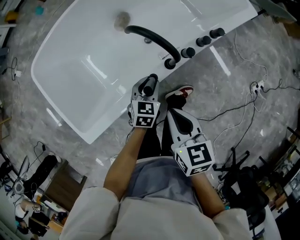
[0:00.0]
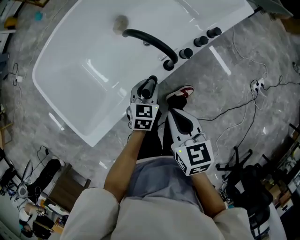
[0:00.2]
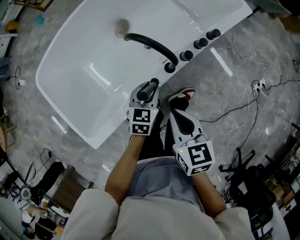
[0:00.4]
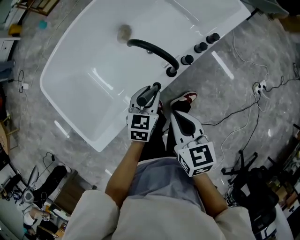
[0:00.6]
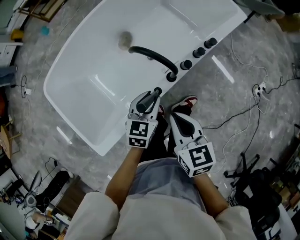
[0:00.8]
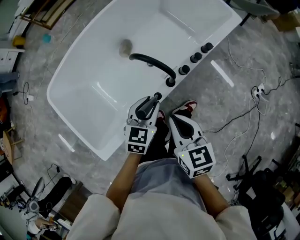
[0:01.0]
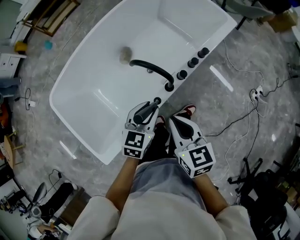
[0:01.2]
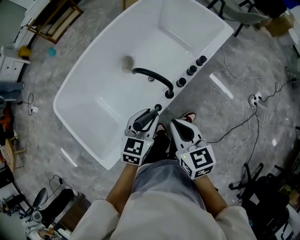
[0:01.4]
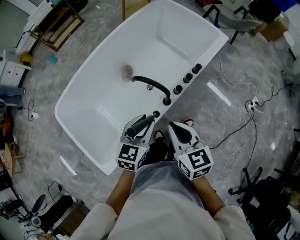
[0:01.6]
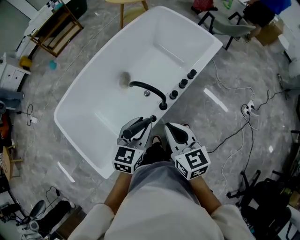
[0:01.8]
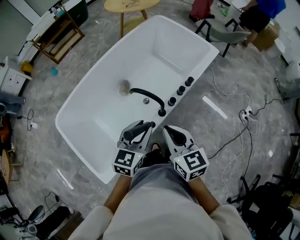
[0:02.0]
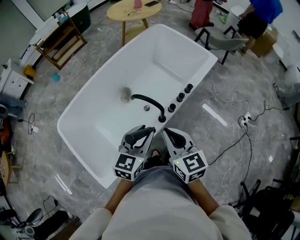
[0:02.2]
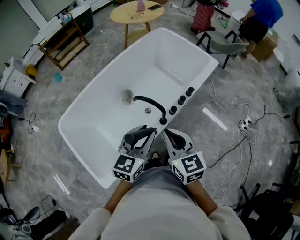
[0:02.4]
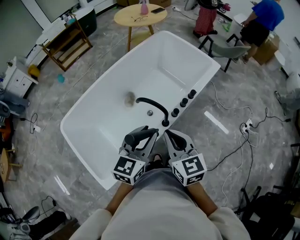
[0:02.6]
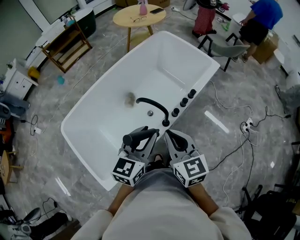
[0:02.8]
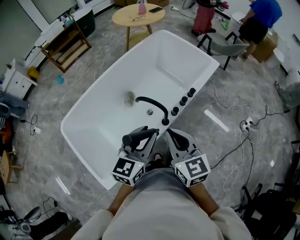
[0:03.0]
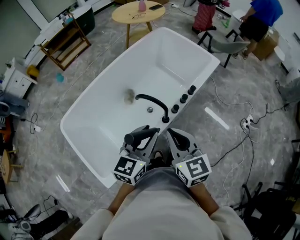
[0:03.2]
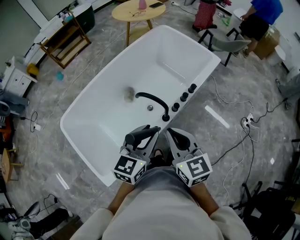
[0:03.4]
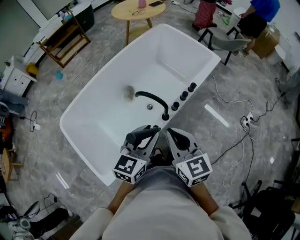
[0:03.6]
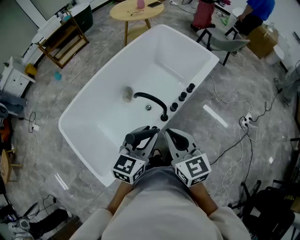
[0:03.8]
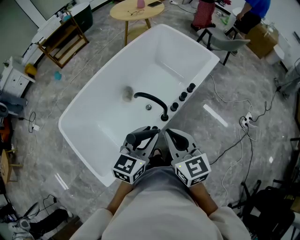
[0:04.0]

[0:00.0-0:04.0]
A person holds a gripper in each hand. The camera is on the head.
0:00.0 to 0:01.4: The right gripper goes approximately 10 cm upward, while the left gripper moves upward, roughly 20 cm.
0:01.4 to 0:02.6: The two grippers go approximately 15 cm upward.
0:02.6 to 0:04.0: The grippers make only small movements.

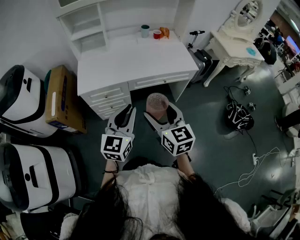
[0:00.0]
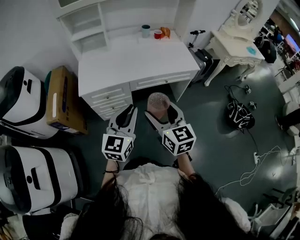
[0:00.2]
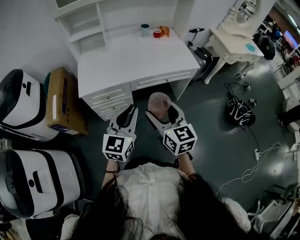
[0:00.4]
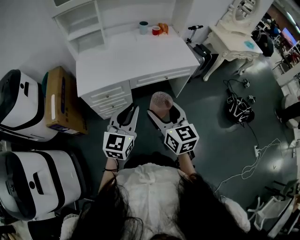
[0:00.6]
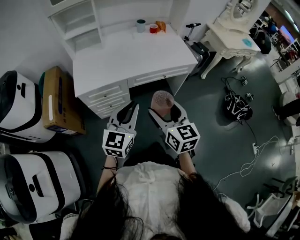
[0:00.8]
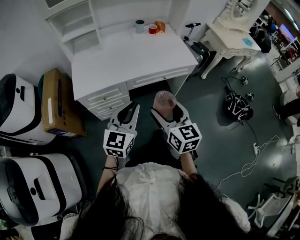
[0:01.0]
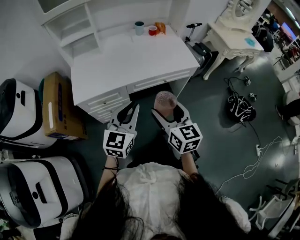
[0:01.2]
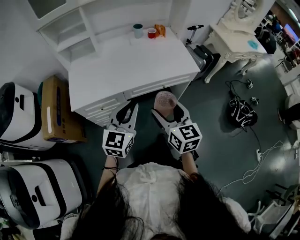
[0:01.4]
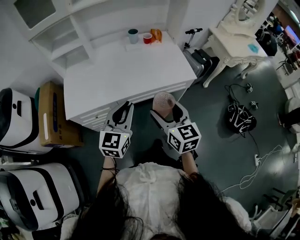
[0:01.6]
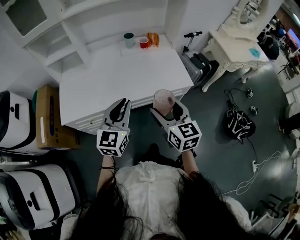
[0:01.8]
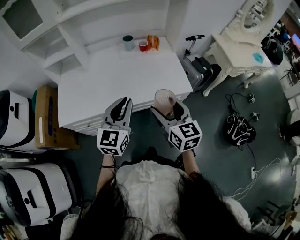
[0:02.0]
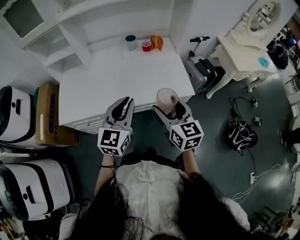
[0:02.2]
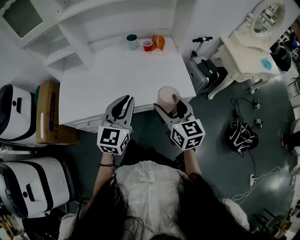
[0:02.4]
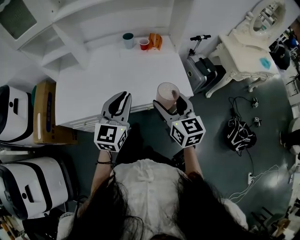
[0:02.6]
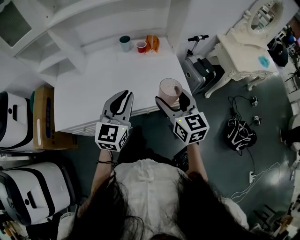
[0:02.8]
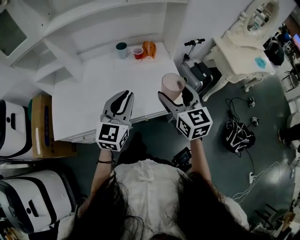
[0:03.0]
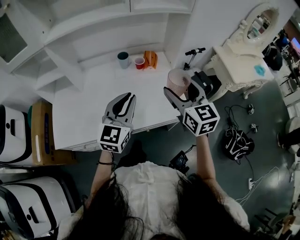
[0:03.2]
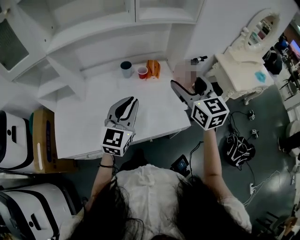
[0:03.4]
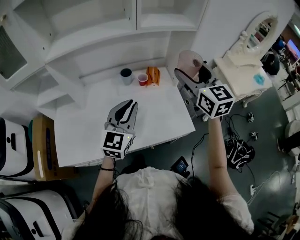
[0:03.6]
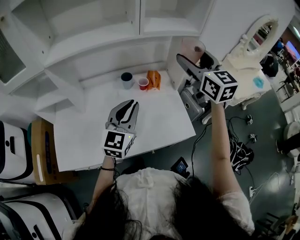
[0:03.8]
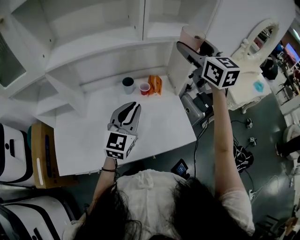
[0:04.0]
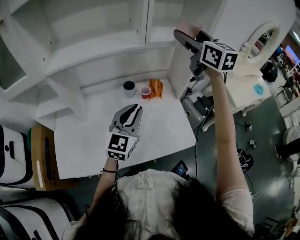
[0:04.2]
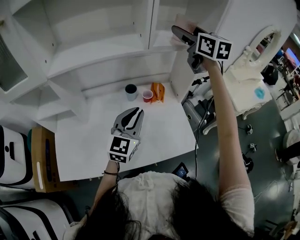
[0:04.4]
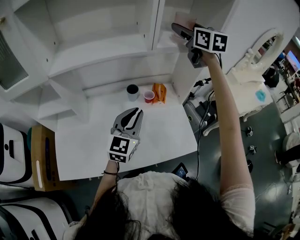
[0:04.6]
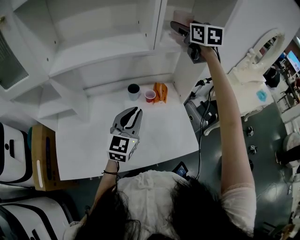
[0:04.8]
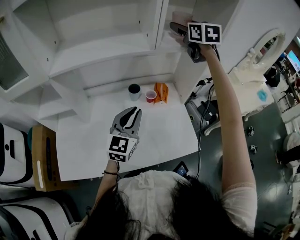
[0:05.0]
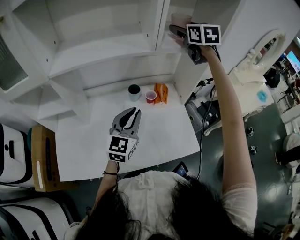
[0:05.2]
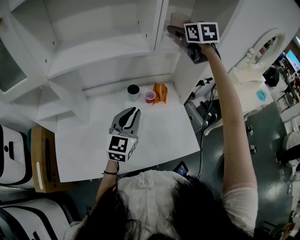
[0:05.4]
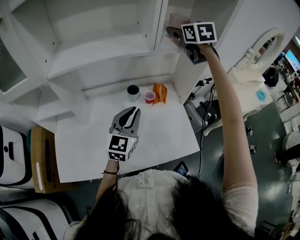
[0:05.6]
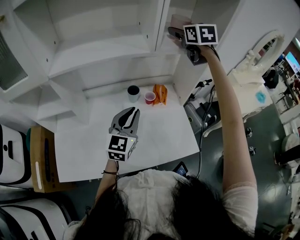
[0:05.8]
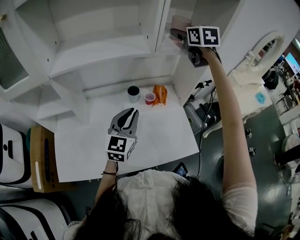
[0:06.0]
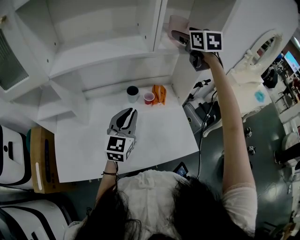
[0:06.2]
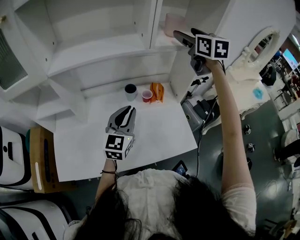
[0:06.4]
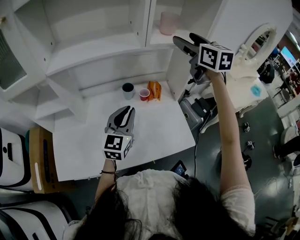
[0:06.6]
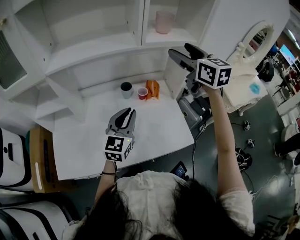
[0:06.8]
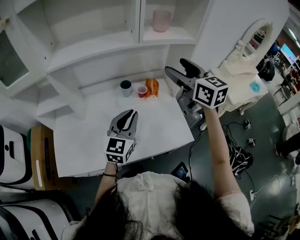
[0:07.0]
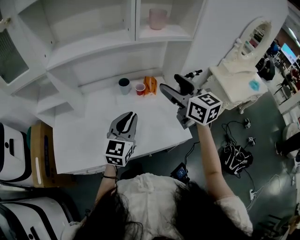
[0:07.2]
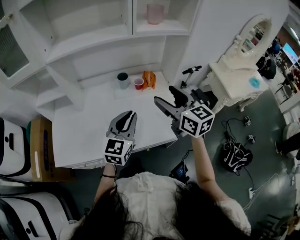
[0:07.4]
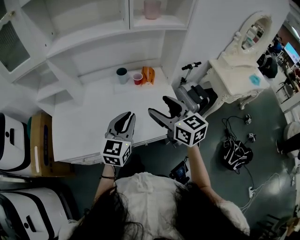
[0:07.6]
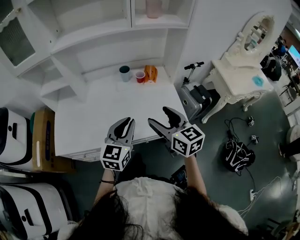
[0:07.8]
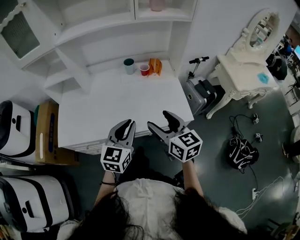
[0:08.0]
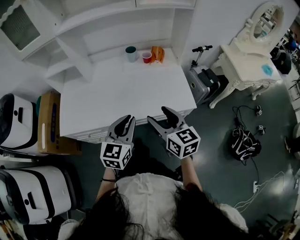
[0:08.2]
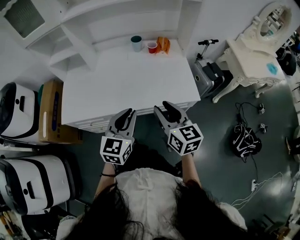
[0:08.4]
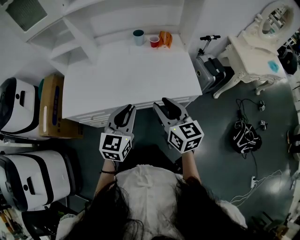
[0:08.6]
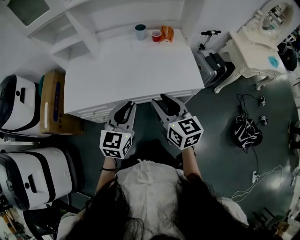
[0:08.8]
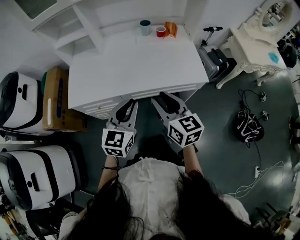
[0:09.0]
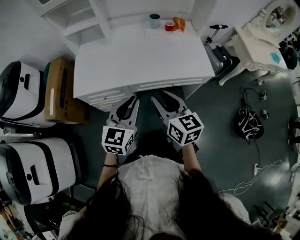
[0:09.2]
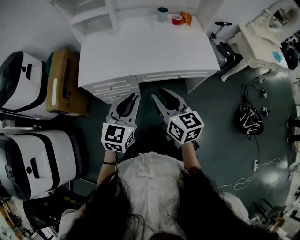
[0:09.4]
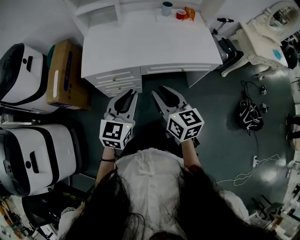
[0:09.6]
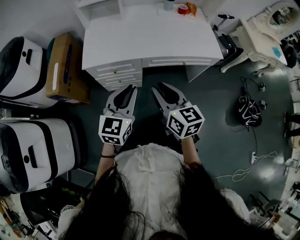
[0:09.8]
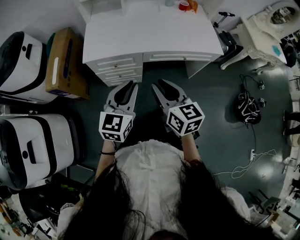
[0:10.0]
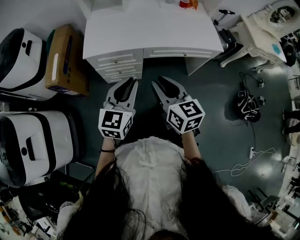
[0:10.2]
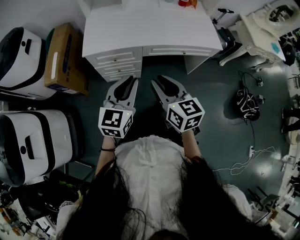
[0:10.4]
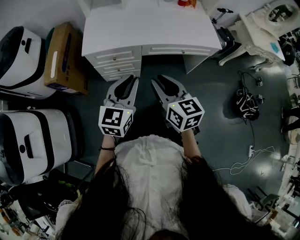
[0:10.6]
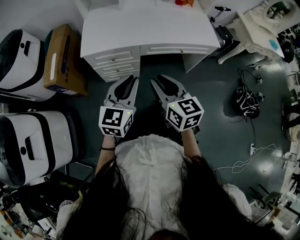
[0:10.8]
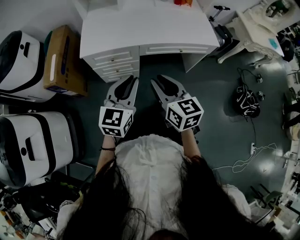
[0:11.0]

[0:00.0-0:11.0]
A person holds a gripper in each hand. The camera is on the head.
0:00.0 to 0:01.6: The left gripper moves forward, roughly 20 cm. The right gripper is displaced forward and to the right by approximately 20 cm.
0:01.6 to 0:03.2: The two grippers go about 30 cm forward and to the right.
0:03.2 to 0:04.8: The left gripper is displaced forward by about 15 cm. The right gripper moves forward and upward, roughly 40 cm.
0:04.8 to 0:06.2: The grippers stay close to where they were, moving slightly.
0:06.2 to 0:07.8: The left gripper moves backward, roughly 20 cm, while the right gripper goes about 50 cm backward and downward, and rotates approximately 30 degrees.
0:07.8 to 0:09.4: The left gripper moves backward and to the left, some 30 cm, while the right gripper is displaced to the left and backward by roughly 30 cm, and closes up.
0:09.4 to 0:11.0: Both grippers move backward and to the left, about 10 cm.

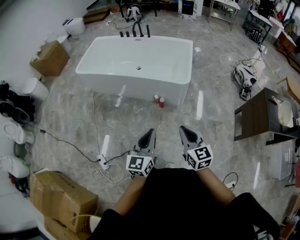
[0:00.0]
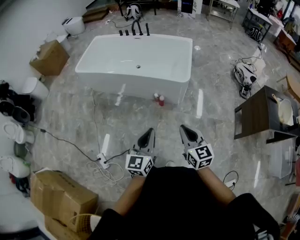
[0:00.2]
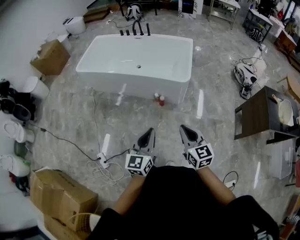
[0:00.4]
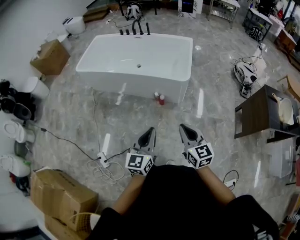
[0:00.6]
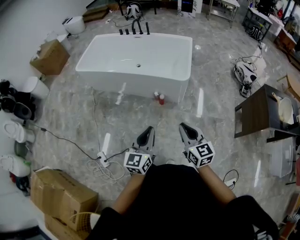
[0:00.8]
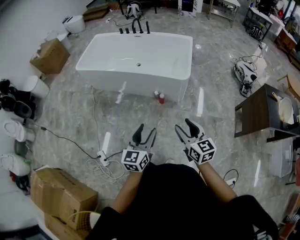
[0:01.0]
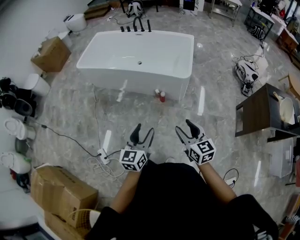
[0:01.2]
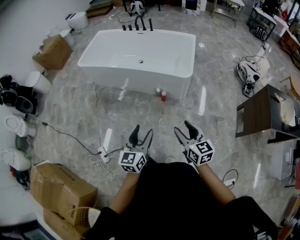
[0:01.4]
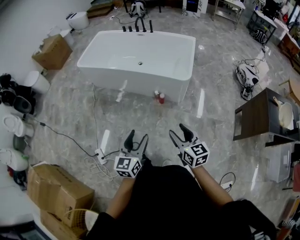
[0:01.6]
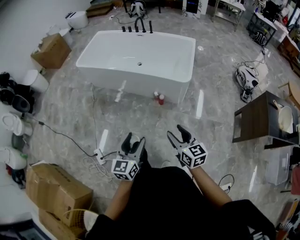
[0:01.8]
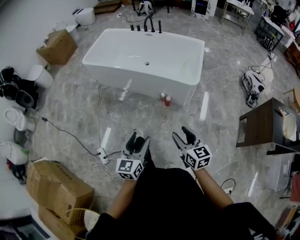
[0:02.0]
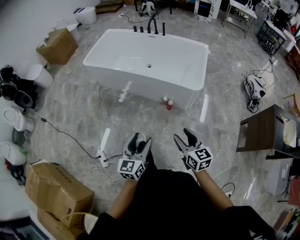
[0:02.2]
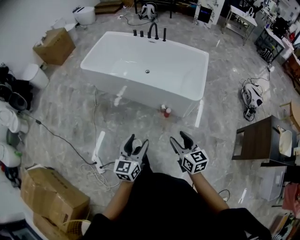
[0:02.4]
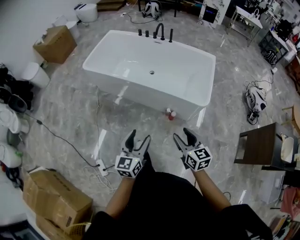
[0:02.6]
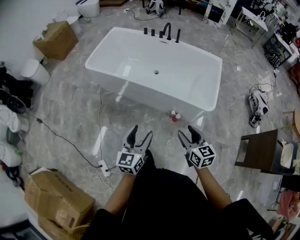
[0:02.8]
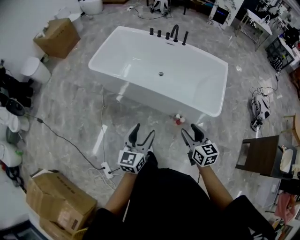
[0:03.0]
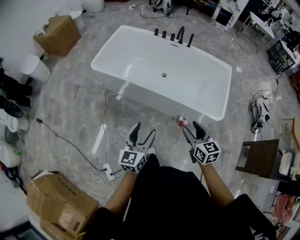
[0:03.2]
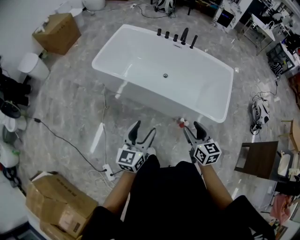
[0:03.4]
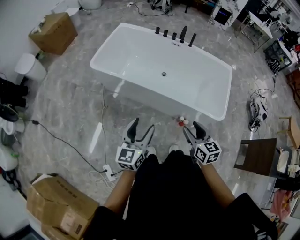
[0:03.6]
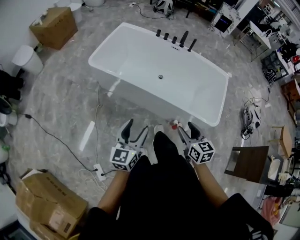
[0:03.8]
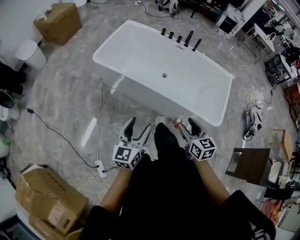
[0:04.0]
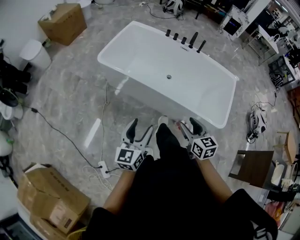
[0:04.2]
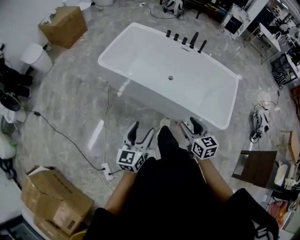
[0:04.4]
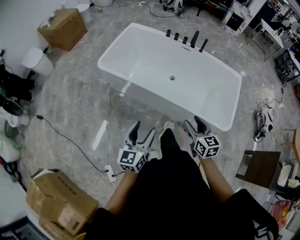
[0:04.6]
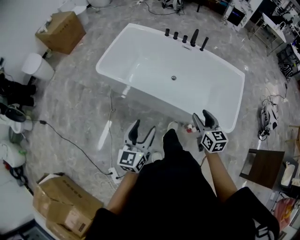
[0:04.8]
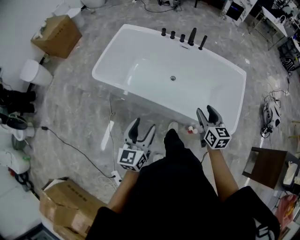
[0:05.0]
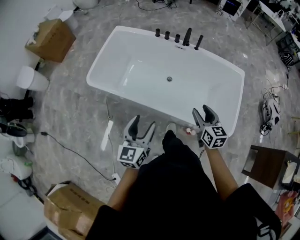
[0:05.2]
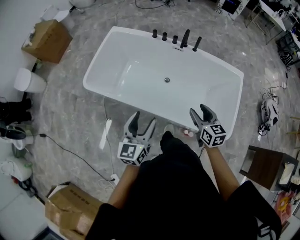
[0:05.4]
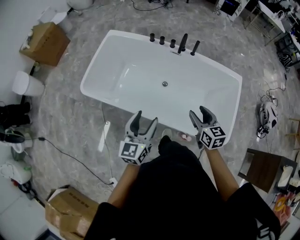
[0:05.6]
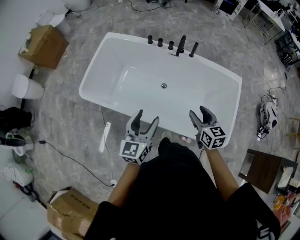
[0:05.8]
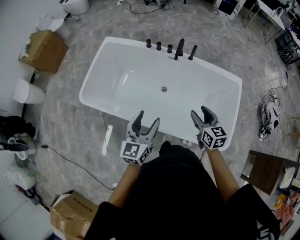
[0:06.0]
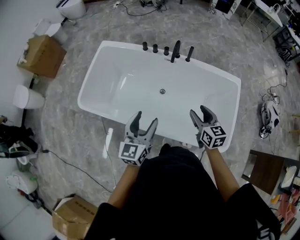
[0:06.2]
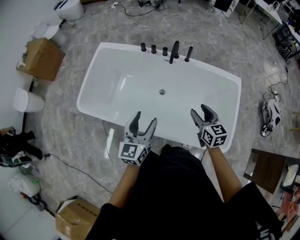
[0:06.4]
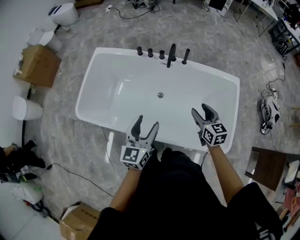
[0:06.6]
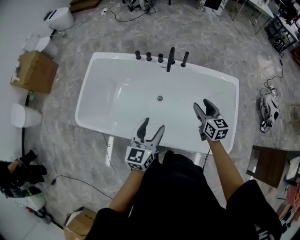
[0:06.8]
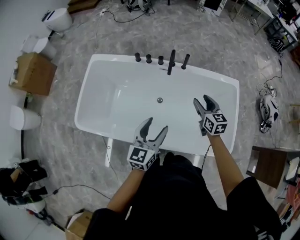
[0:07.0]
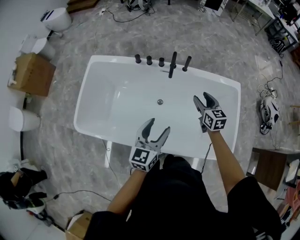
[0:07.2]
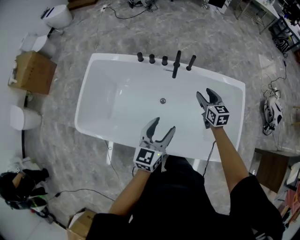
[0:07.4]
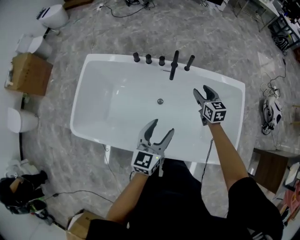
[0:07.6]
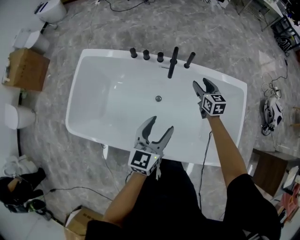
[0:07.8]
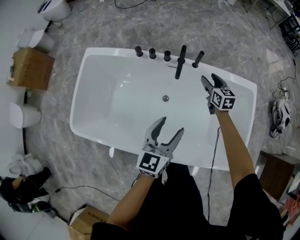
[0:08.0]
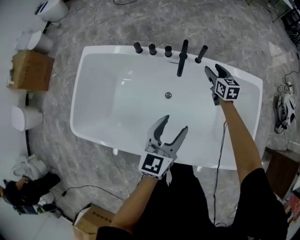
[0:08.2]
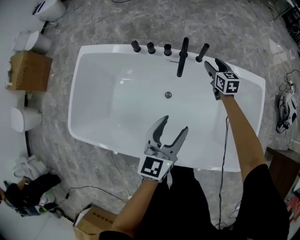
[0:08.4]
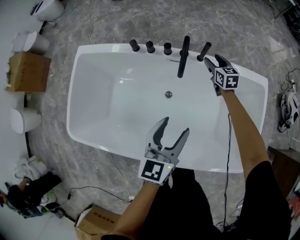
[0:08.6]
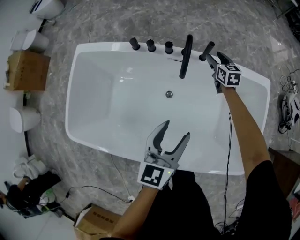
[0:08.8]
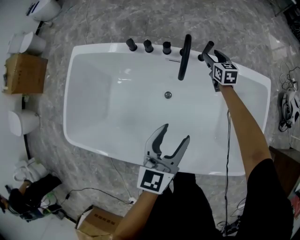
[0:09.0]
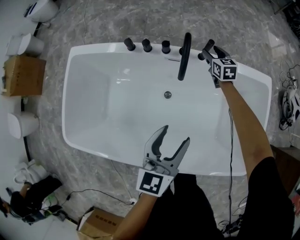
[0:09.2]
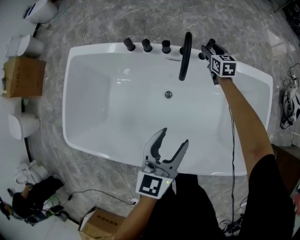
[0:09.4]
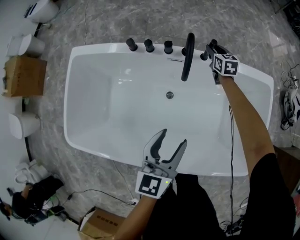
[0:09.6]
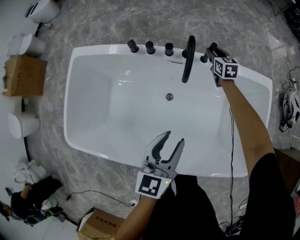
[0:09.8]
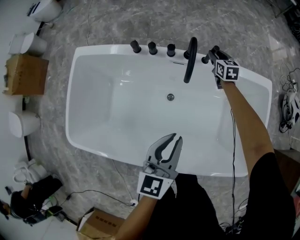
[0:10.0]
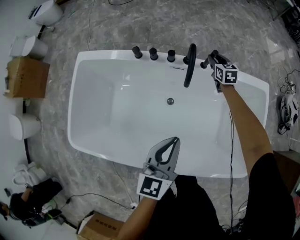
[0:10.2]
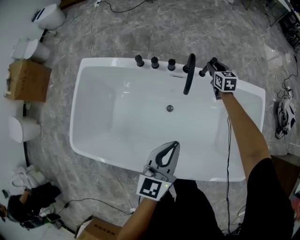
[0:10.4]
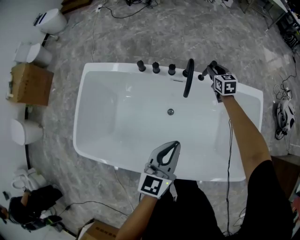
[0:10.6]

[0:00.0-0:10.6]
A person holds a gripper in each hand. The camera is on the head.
0:00.0 to 0:01.6: The left gripper changes place by some 5 cm, and opens up; the right gripper opens up.
0:01.6 to 0:03.0: The pair of grippers is taken forward and to the left, roughly 40 cm.
0:03.0 to 0:04.6: The two grippers go some 20 cm forward and to the left.
0:04.6 to 0:06.0: The right gripper is displaced forward and to the right by about 35 cm; the left gripper shifts some 35 cm forward.
0:06.0 to 0:07.6: The right gripper goes roughly 30 cm forward and downward; the left gripper is displaced forward and downward by approximately 20 cm.
0:07.6 to 0:09.0: The left gripper is displaced downward and forward by approximately 15 cm. The right gripper travels forward and downward by approximately 30 cm.
0:09.0 to 0:10.6: The left gripper goes approximately 5 cm upward, and closes; the right gripper shifts some 10 cm upward, and closes.
